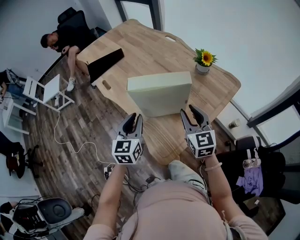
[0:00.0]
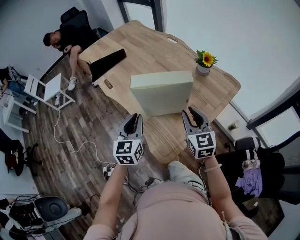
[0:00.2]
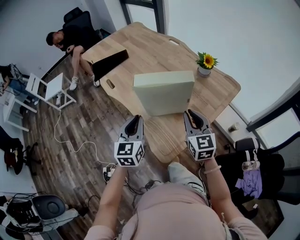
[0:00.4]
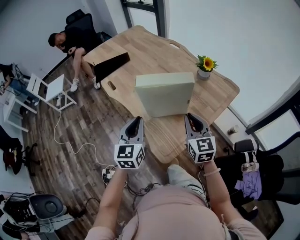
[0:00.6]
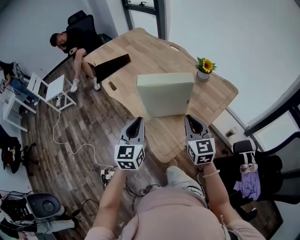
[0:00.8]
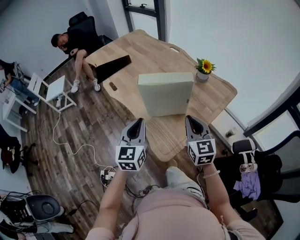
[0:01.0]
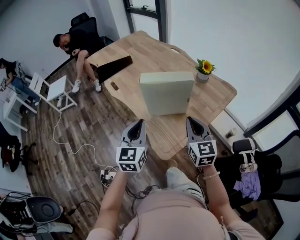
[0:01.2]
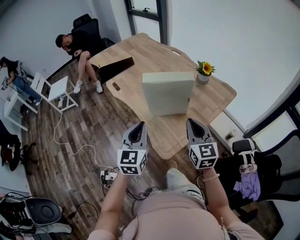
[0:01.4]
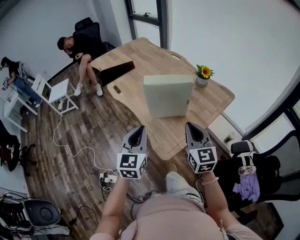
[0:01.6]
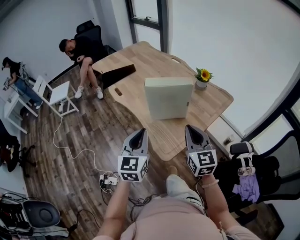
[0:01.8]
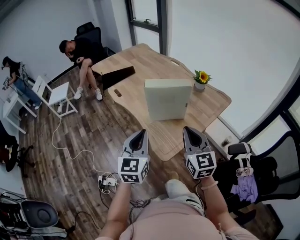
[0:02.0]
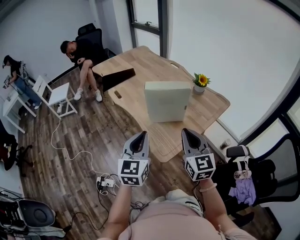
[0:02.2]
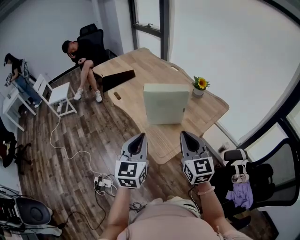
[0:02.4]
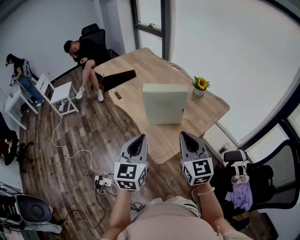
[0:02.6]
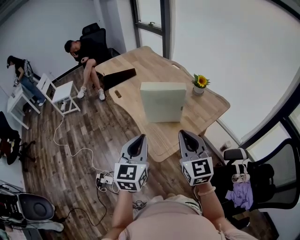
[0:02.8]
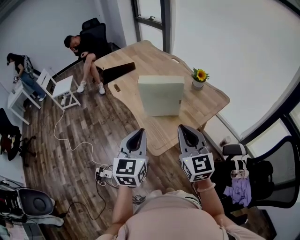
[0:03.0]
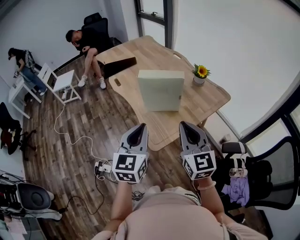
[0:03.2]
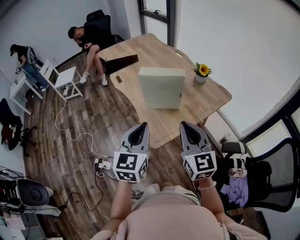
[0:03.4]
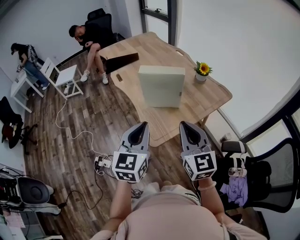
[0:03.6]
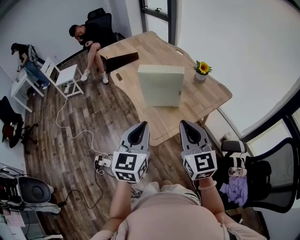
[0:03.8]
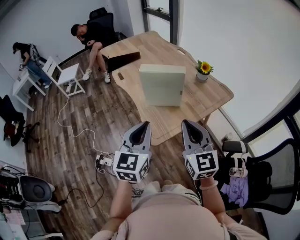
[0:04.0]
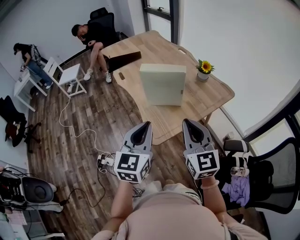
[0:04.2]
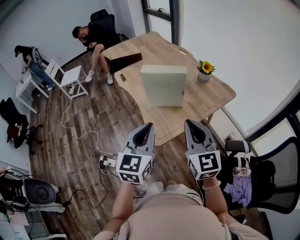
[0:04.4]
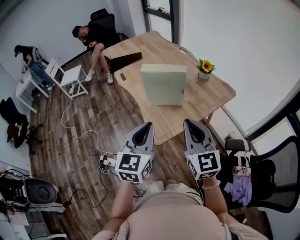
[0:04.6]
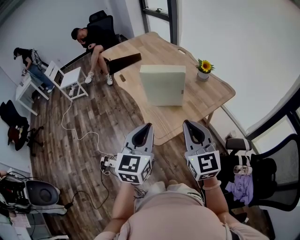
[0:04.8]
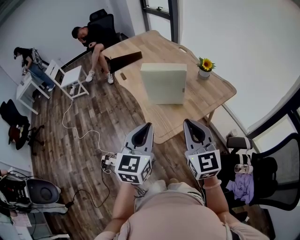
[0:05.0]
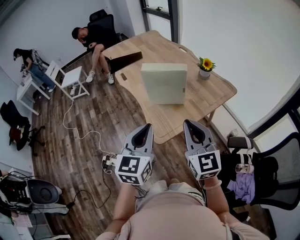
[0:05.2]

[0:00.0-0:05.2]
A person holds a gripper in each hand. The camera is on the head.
0:00.0 to 0:01.8: The grippers both shift backward and upward by approximately 20 cm. The right gripper closes its fingers.
0:01.8 to 0:03.4: The left gripper heads to the right and backward, covering approximately 10 cm. The right gripper moves backward and upward, about 10 cm.
0:03.4 to 0:05.2: The grippers move only a little.

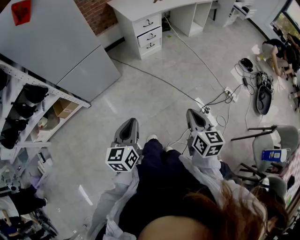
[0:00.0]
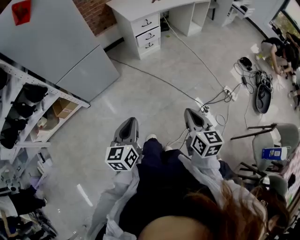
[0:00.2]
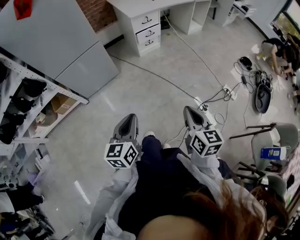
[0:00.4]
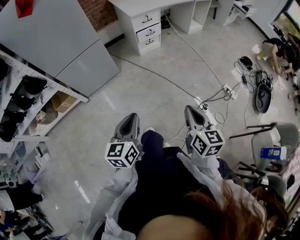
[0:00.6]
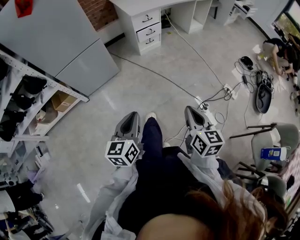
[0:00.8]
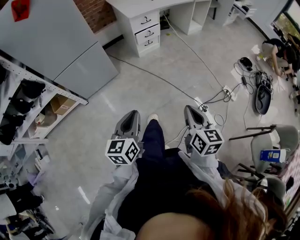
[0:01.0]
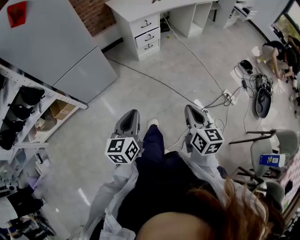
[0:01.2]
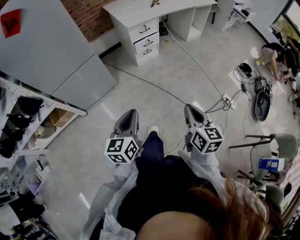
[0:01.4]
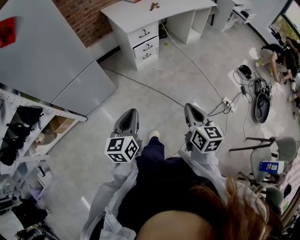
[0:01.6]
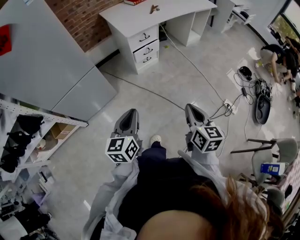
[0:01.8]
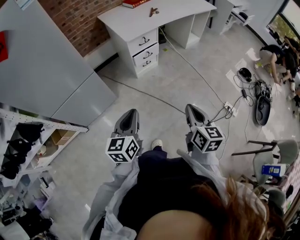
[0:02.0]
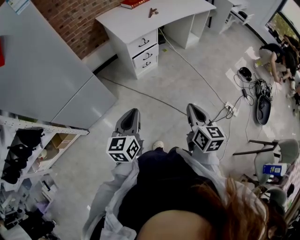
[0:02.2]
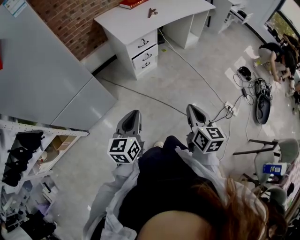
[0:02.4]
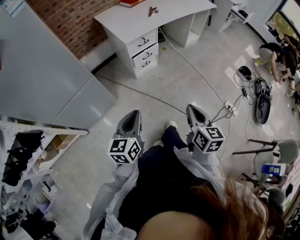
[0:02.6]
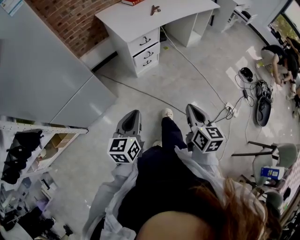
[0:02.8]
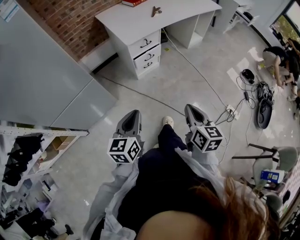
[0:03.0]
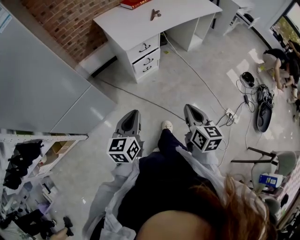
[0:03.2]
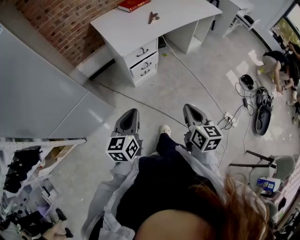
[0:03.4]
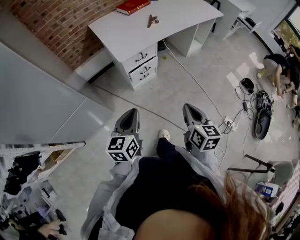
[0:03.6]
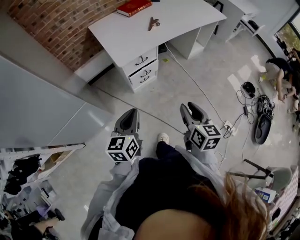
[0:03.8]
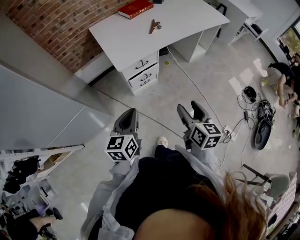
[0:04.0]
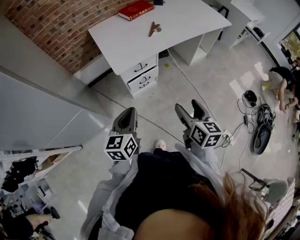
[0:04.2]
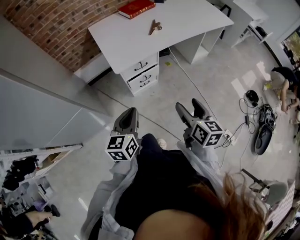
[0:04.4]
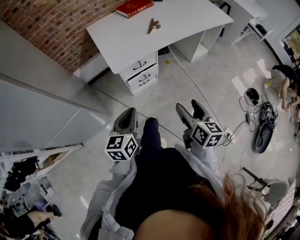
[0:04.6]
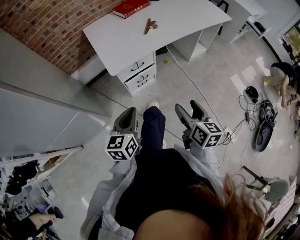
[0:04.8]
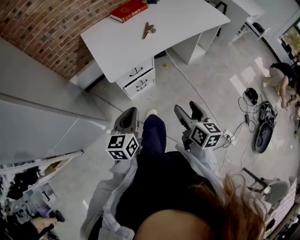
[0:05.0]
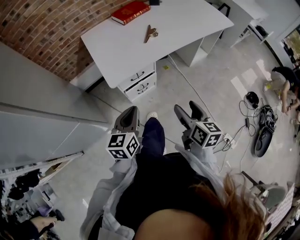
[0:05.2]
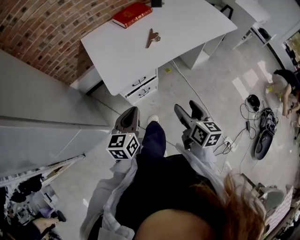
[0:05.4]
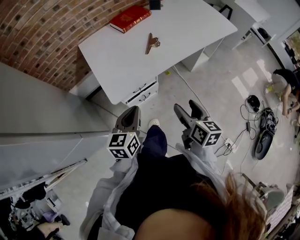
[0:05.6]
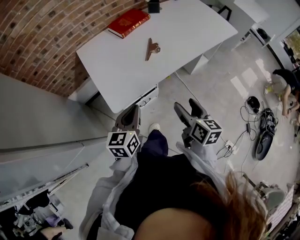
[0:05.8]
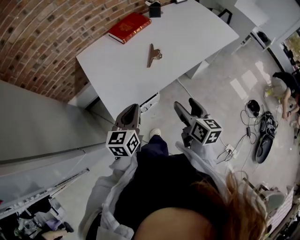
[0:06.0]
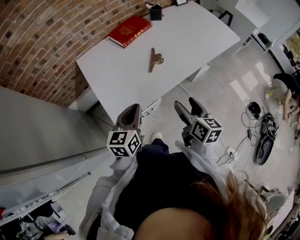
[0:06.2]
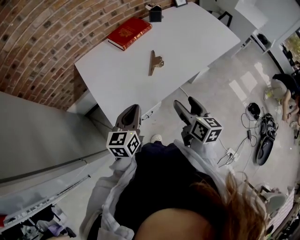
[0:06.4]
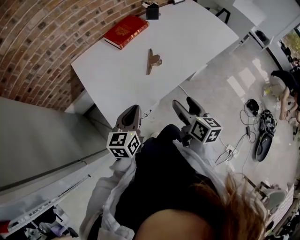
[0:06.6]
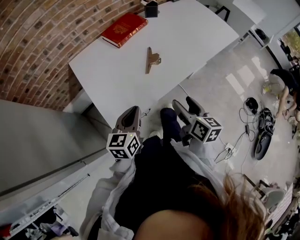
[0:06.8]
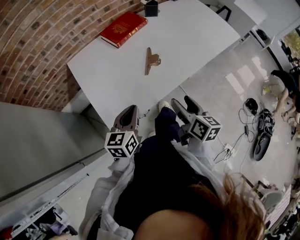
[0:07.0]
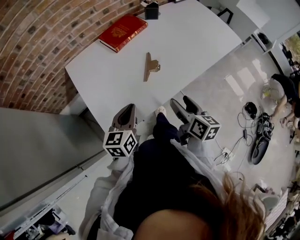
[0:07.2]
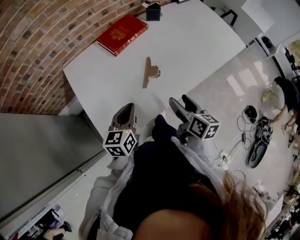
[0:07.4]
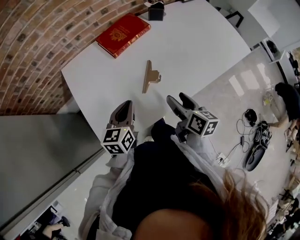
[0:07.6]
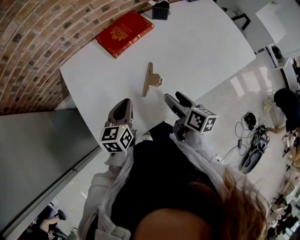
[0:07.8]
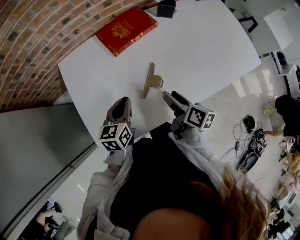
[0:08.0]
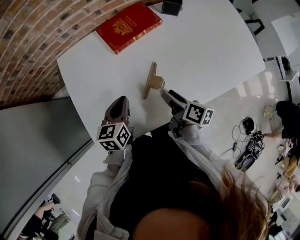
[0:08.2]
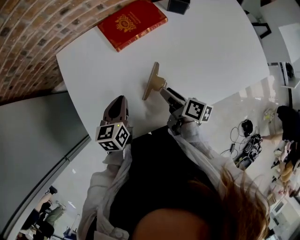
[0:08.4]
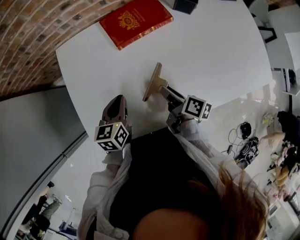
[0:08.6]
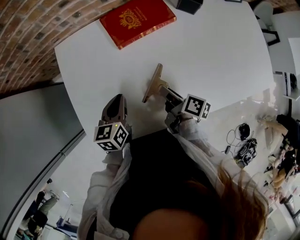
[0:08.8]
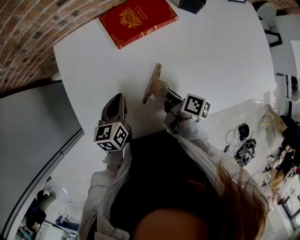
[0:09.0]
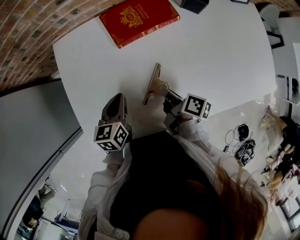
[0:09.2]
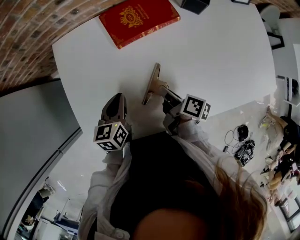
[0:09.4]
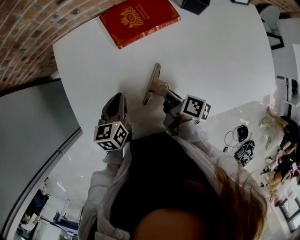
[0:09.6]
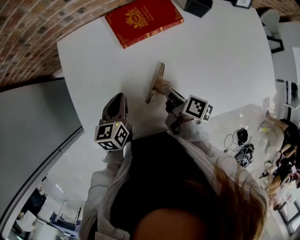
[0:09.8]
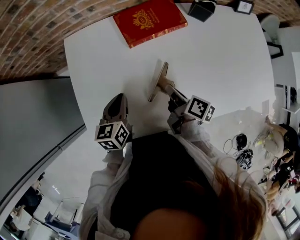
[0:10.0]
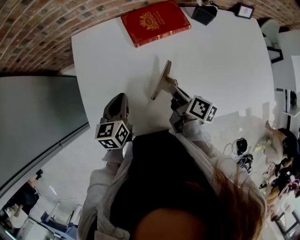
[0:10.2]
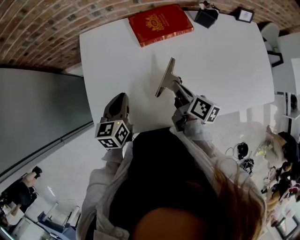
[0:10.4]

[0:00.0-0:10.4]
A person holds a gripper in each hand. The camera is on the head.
0:00.0 to 0:01.4: Both grippers move forward, approximately 10 cm.
0:01.4 to 0:03.0: Both grippers move forward, approximately 20 cm.
0:03.0 to 0:04.4: The grippers both shift forward by some 25 cm. The right gripper opens up.
0:04.4 to 0:06.0: The two grippers go about 25 cm forward.
0:06.0 to 0:07.4: The two grippers go about 15 cm forward.
0:07.4 to 0:09.0: The right gripper ends up about 20 cm from where it was, turns by about 40 degrees, and closes up; the left gripper shifts by approximately 15 cm, and changes its angle by some 30 degrees.
0:09.0 to 0:10.4: The left gripper moves to the left, about 5 cm. The right gripper is displaced upward by roughly 10 cm, and swivels about 20 degrees.

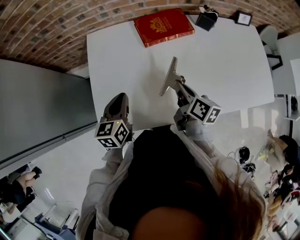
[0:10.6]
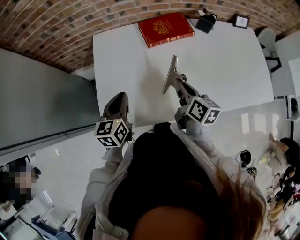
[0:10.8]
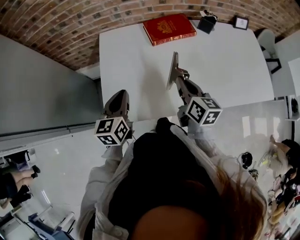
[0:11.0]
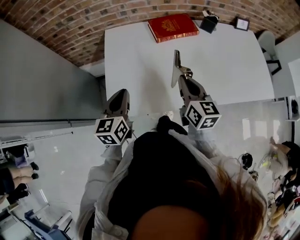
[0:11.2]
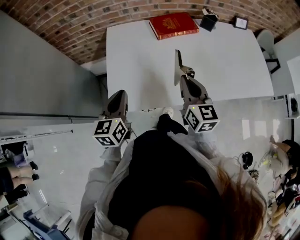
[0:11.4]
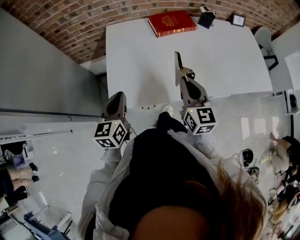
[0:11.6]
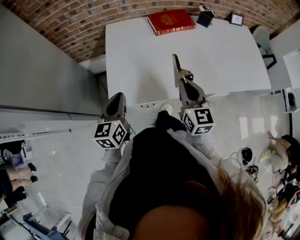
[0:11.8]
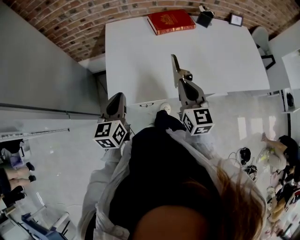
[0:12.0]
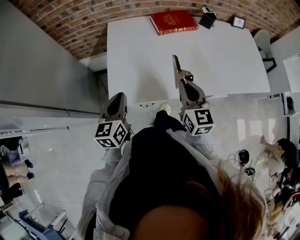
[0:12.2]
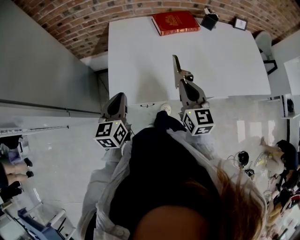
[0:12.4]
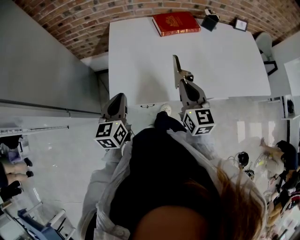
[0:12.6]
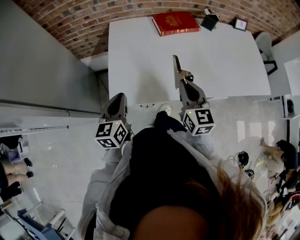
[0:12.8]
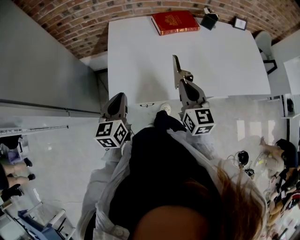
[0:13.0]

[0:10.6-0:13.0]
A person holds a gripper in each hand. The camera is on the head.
0:10.6 to 0:11.8: The right gripper goes some 20 cm backward, upward and to the left, and twists some 50 degrees counterclockwise, seen from behind. Meanwhile the left gripper travels backward and to the left by about 15 cm.
0:11.8 to 0:13.0: Neither gripper changes place.

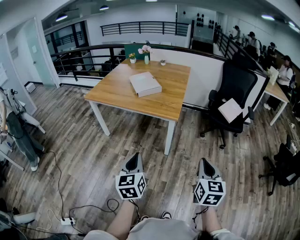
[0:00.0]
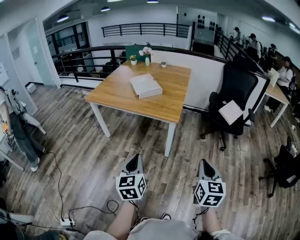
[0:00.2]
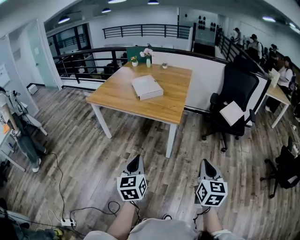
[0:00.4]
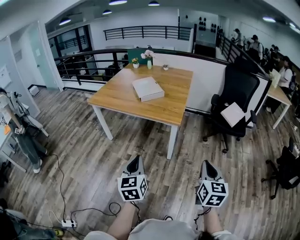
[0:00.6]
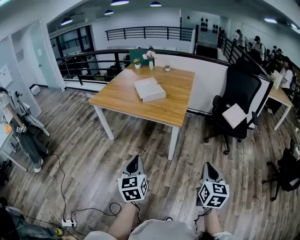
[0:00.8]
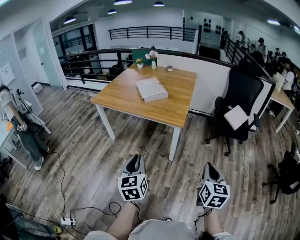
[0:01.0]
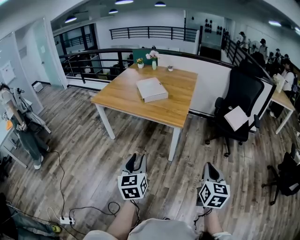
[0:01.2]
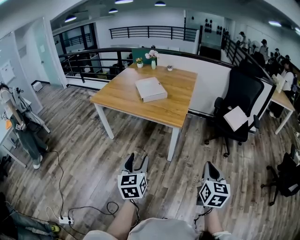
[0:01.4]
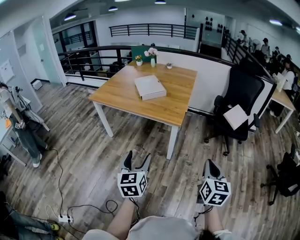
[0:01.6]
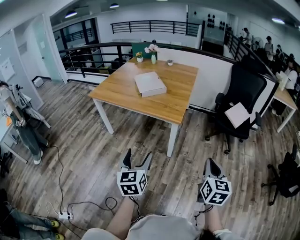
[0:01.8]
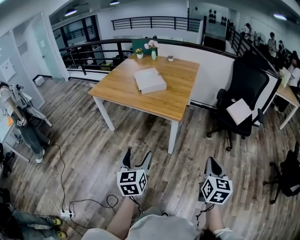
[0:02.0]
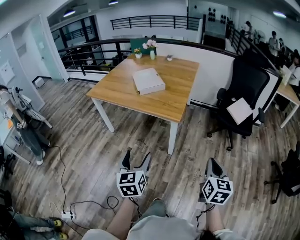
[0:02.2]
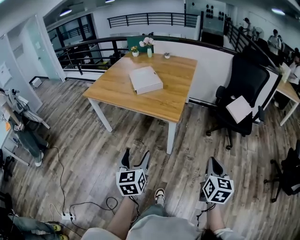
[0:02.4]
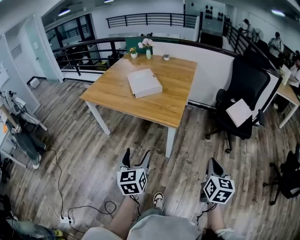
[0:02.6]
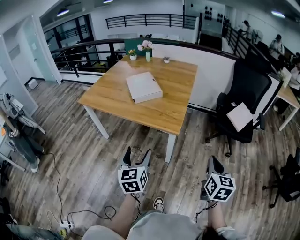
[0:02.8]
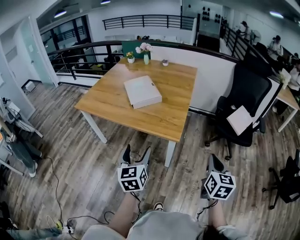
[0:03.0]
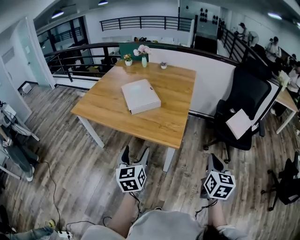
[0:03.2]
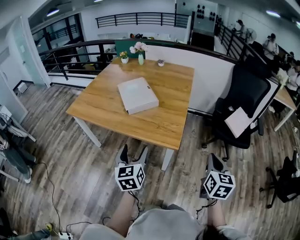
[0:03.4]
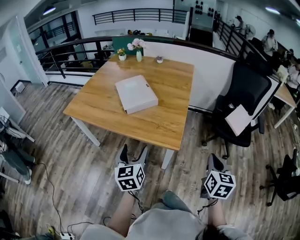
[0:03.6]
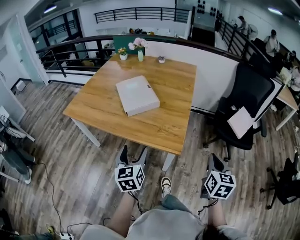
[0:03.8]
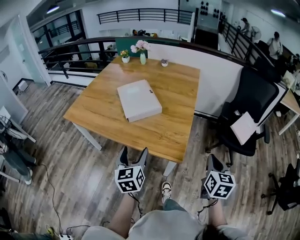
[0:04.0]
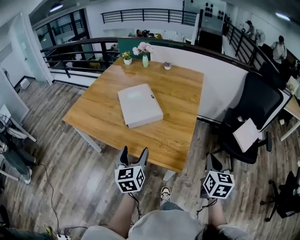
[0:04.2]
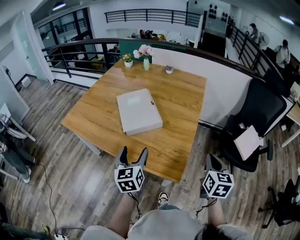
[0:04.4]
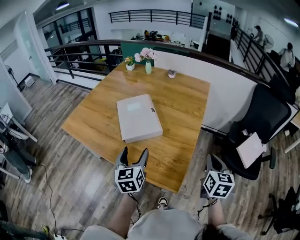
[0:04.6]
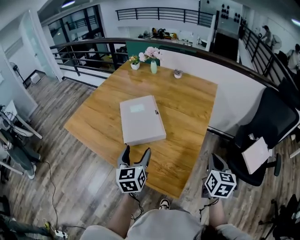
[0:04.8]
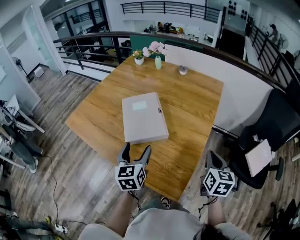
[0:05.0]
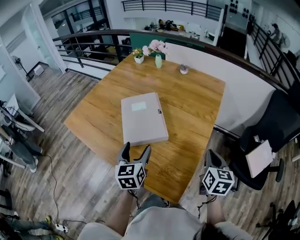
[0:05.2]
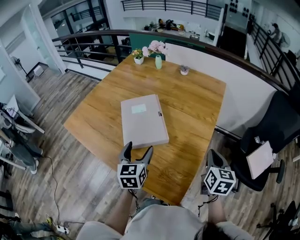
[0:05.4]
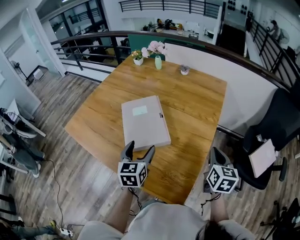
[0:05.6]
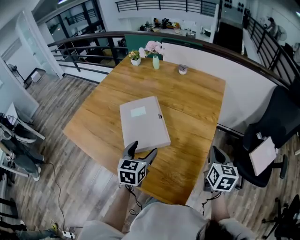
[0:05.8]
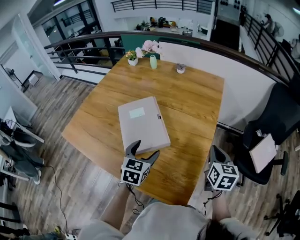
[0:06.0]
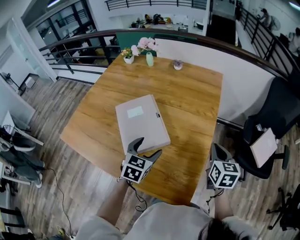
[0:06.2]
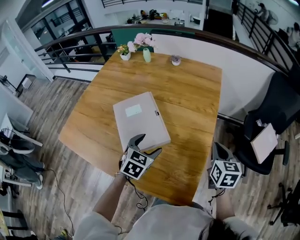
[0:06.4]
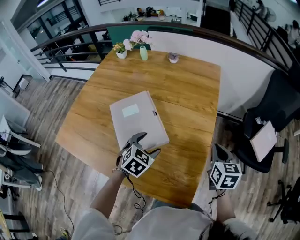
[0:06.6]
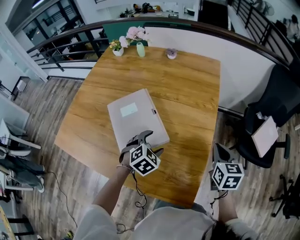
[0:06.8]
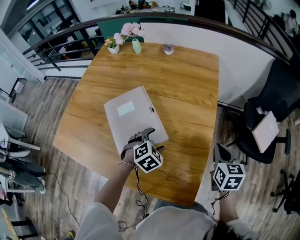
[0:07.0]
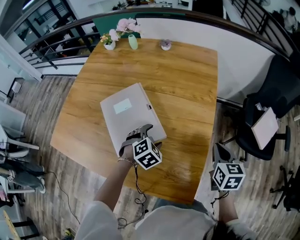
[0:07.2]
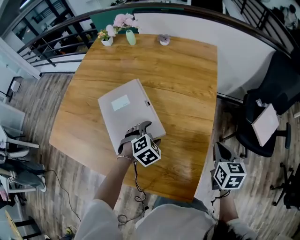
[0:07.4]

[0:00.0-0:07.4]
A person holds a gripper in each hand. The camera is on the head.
0:00.0 to 0:01.4: The left gripper opens up.
0:01.4 to 0:03.0: The grippers both shift forward by some 25 cm. The left gripper opens its fingers.
0:03.0 to 0:04.4: The grippers both shift forward by roughly 30 cm.
0:04.4 to 0:06.0: The two grippers go approximately 20 cm forward. The left gripper rotates approximately 30 degrees.
0:06.0 to 0:07.4: The left gripper travels downward and forward by about 15 cm, and rotates around the line of its fingers by about 40 degrees, clockwise from behind, while the right gripper travels downward by some 5 cm.
